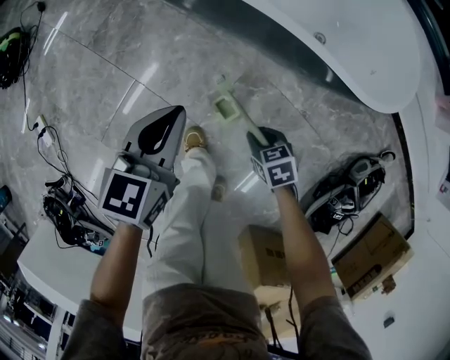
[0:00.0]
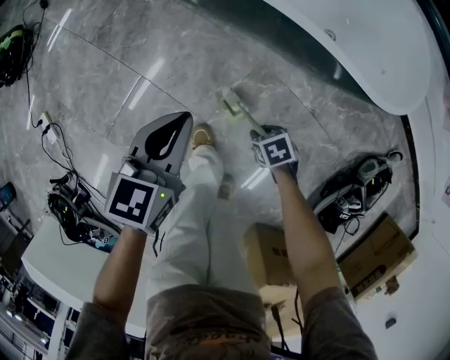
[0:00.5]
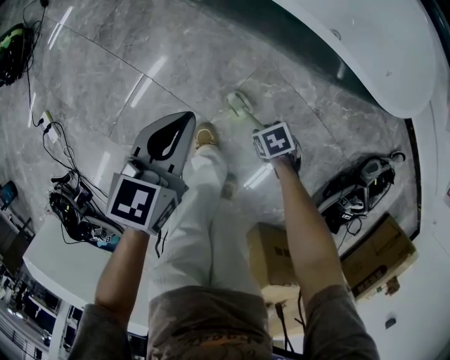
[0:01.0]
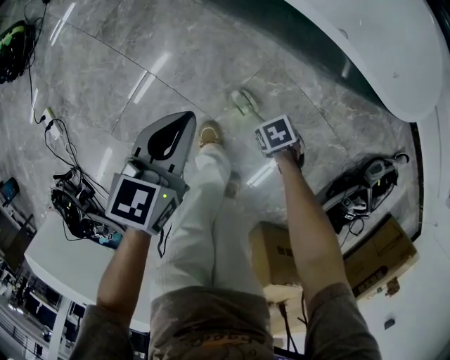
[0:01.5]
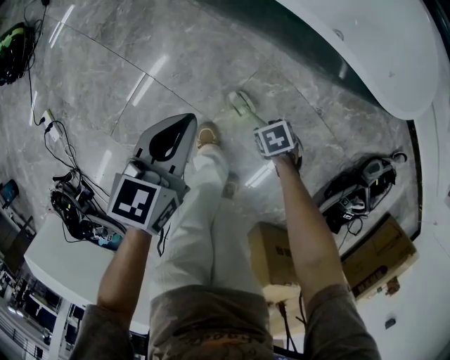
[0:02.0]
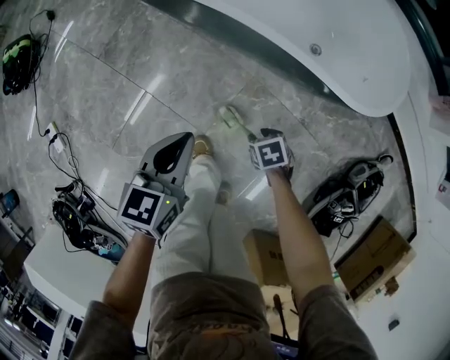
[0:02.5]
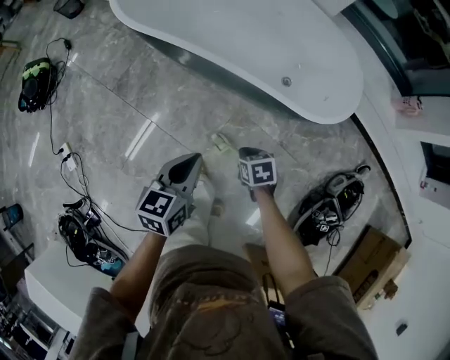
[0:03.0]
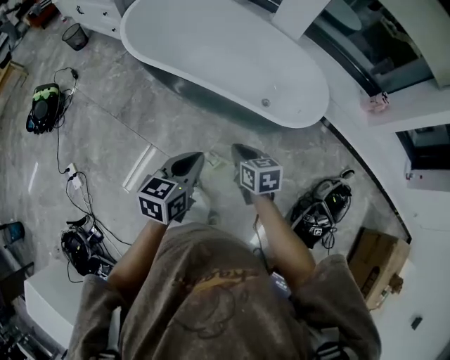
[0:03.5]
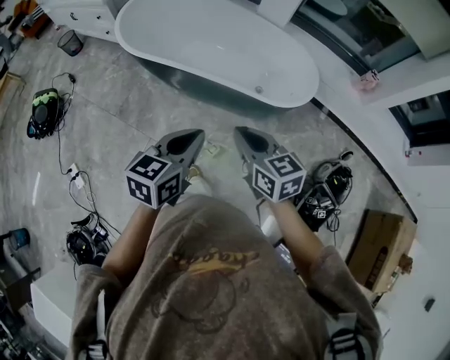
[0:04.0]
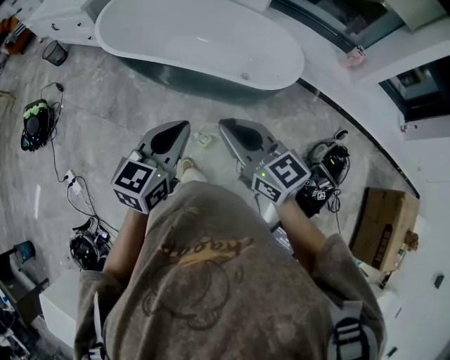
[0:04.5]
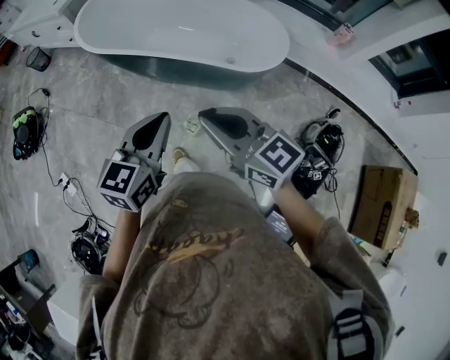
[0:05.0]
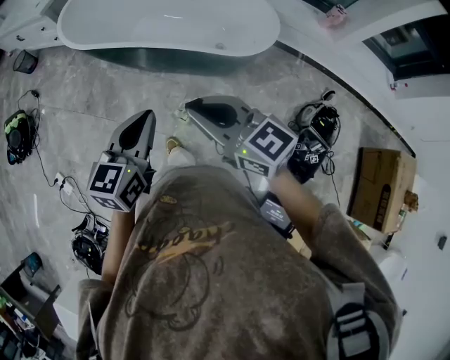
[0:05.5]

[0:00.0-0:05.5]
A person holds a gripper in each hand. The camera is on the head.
0:00.0 to 0:02.0: The right gripper heads downward, covering approximately 10 cm, rotates roughly 20 degrees, and opens its fingers.
0:02.0 to 0:03.5: The right gripper shifts roughly 50 cm upward, angles its fingers upward, by about 40 degrees, and closes. The left gripper heads upward, covering about 30 cm.
0:03.5 to 0:05.5: The right gripper shifts approximately 25 cm upward and backward, and tilts its fingers roughly 30 degrees upward, while the left gripper shifts roughly 10 cm upward and backward.

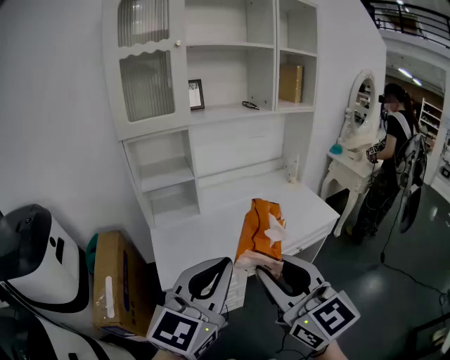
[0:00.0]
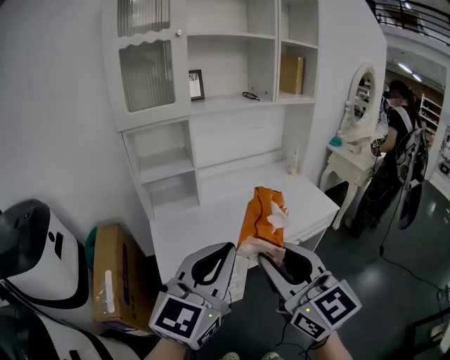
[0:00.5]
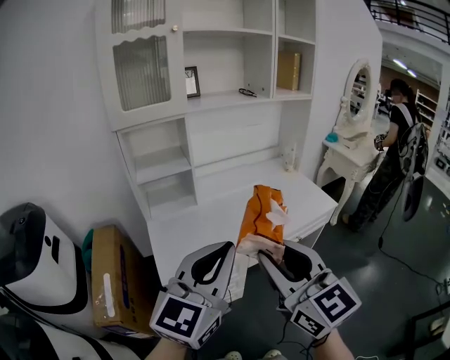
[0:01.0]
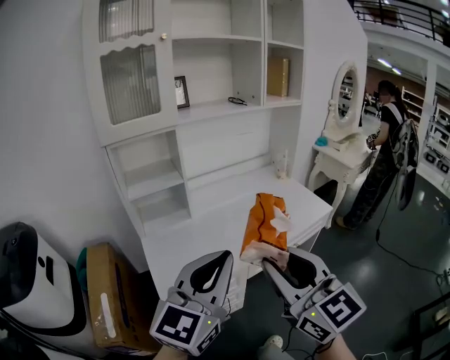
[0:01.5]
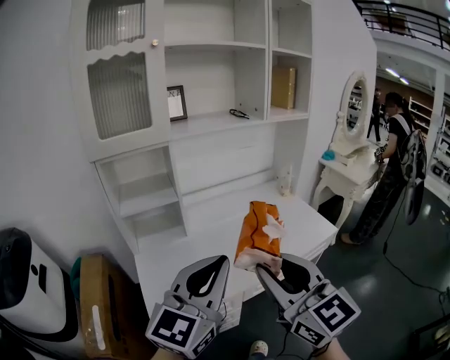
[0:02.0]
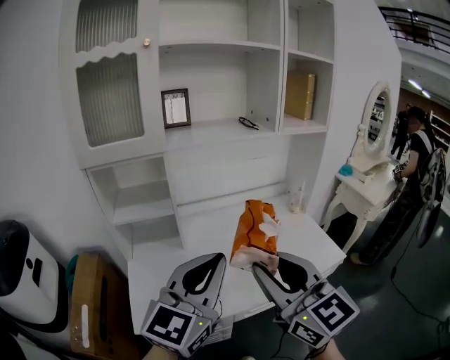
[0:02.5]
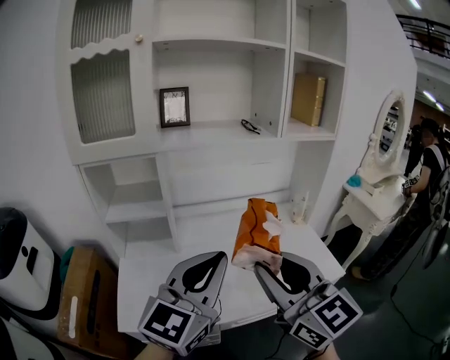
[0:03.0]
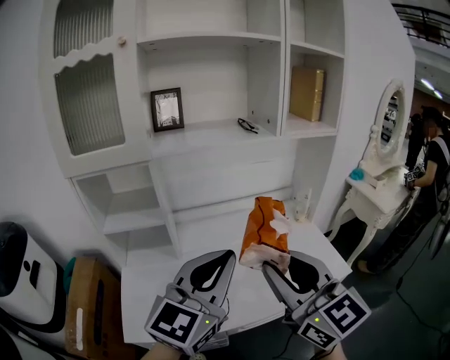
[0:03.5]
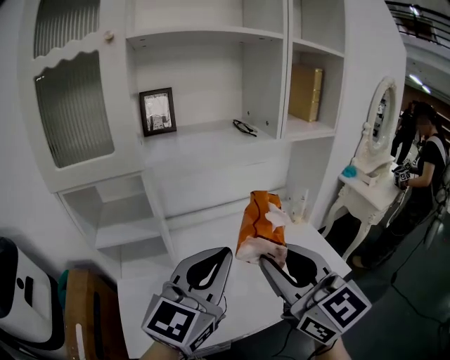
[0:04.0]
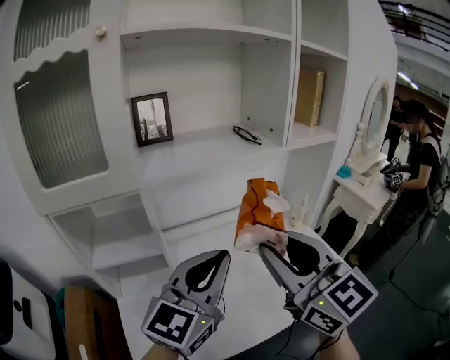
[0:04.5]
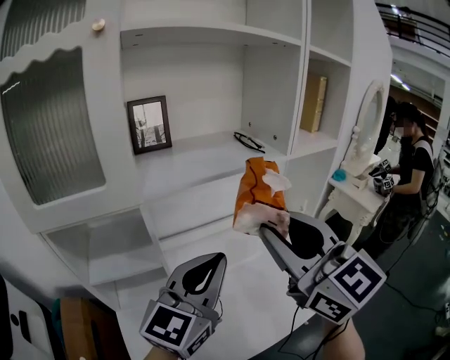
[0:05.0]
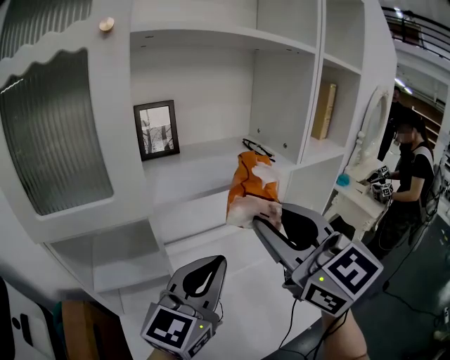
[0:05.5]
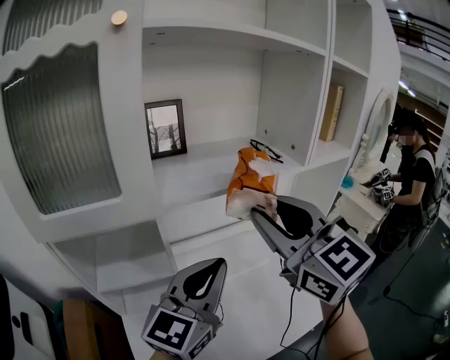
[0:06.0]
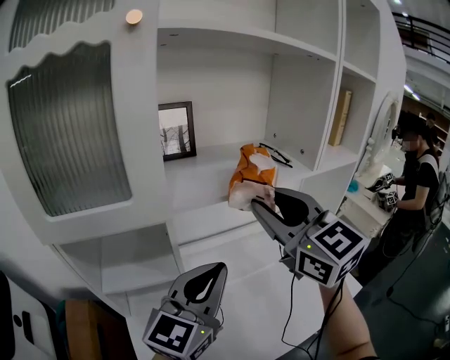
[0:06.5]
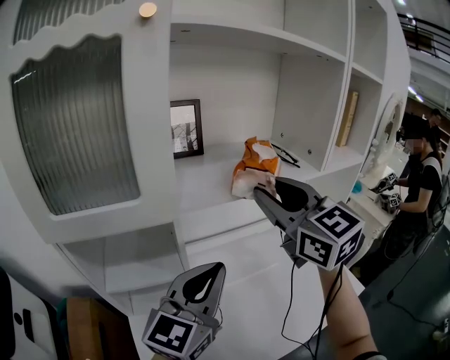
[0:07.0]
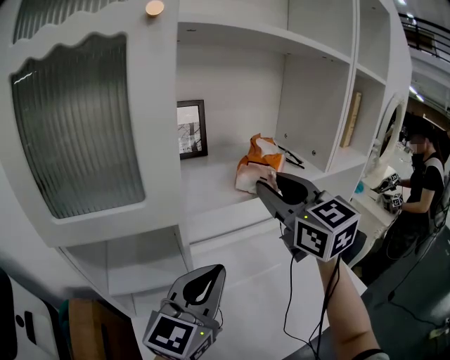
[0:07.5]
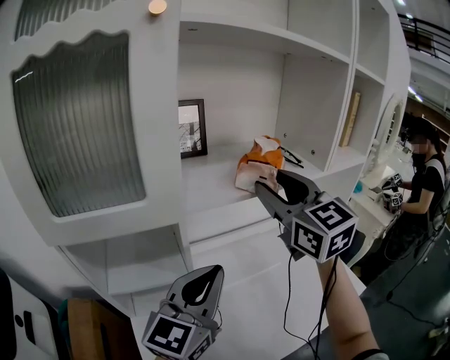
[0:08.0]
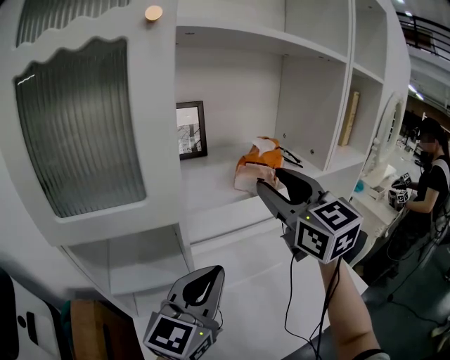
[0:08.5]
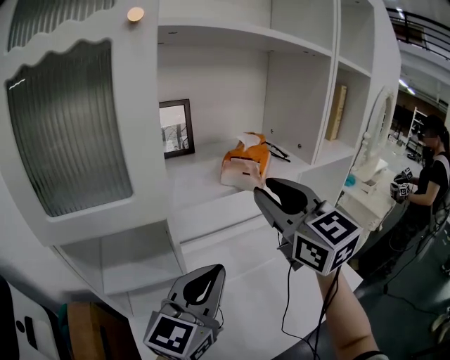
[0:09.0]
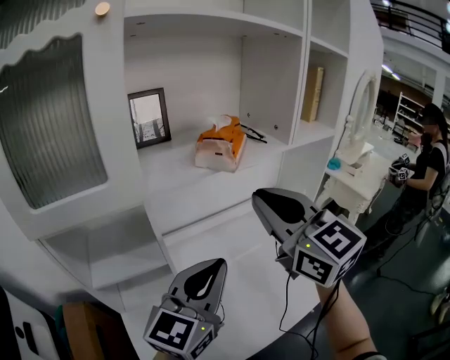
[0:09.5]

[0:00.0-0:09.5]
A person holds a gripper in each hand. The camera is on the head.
0:00.0 to 0:02.0: Both grippers travel together forward, about 10 cm.
0:02.0 to 0:04.0: Both grippers move forward, some 20 cm.
0:04.0 to 0:05.5: The left gripper moves forward and to the left, approximately 15 cm. The right gripper moves forward, upward and to the left, roughly 20 cm.
0:05.5 to 0:07.5: The right gripper shifts roughly 15 cm forward. Meanwhile the left gripper is displaced to the left by approximately 5 cm.
0:07.5 to 0:09.5: The left gripper is displaced to the right by approximately 5 cm. The right gripper moves backward, roughly 10 cm, and closes up.

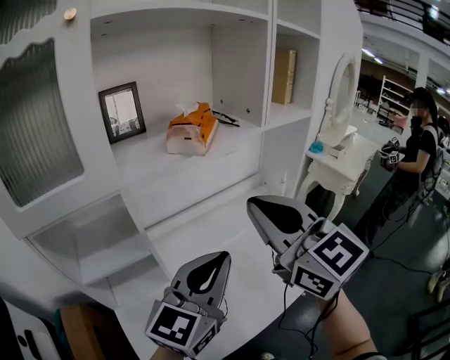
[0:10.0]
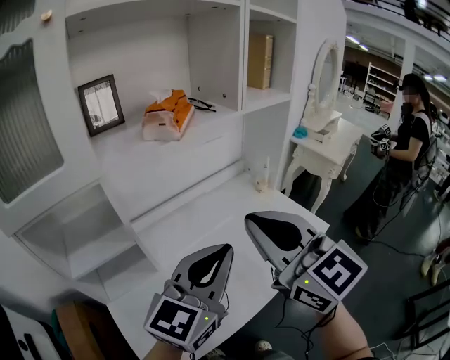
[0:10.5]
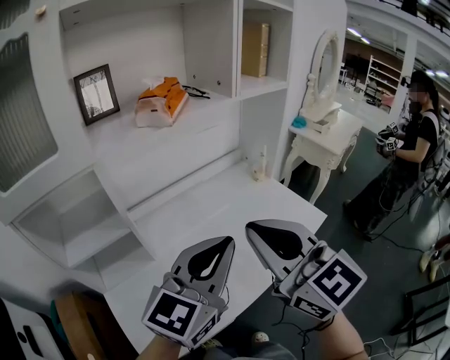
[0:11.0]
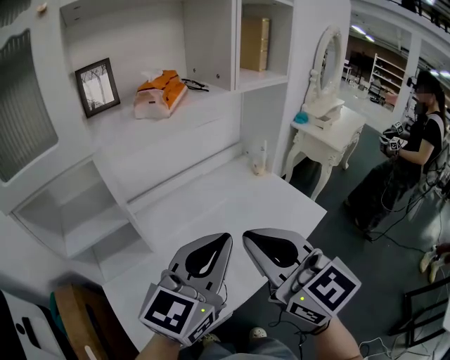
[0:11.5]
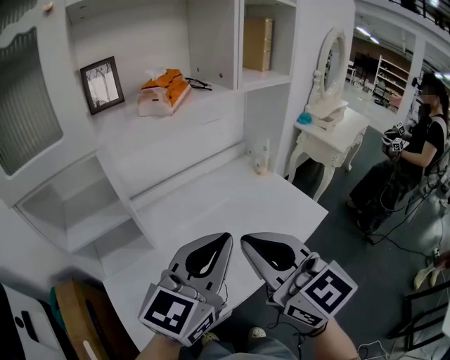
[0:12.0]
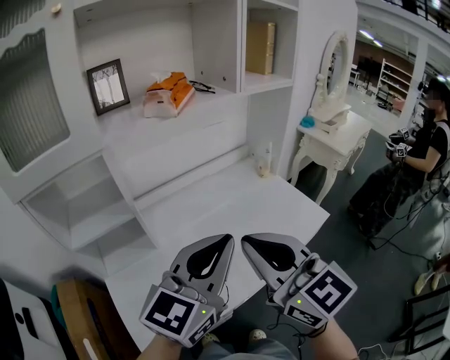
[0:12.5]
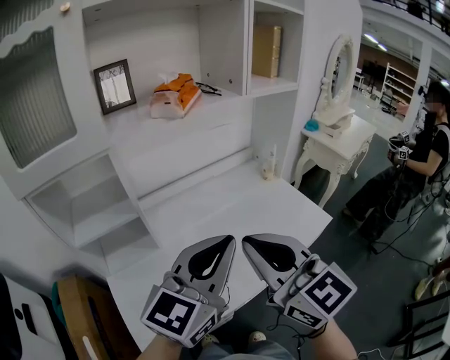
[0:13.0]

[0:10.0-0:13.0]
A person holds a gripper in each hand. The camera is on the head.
0:10.0 to 0:11.5: The right gripper shifts about 15 cm backward, downward and to the right; the left gripper goes about 5 cm to the right.
0:11.5 to 0:13.0: The grippers stay close to where they were, moving slightly.

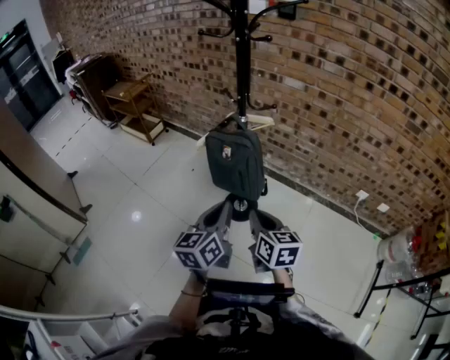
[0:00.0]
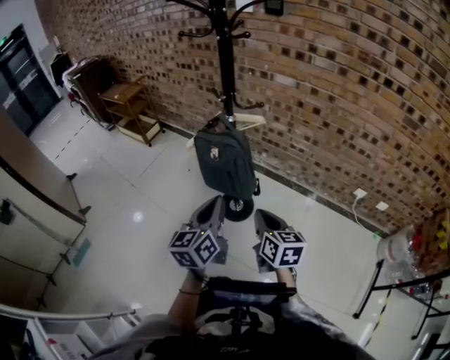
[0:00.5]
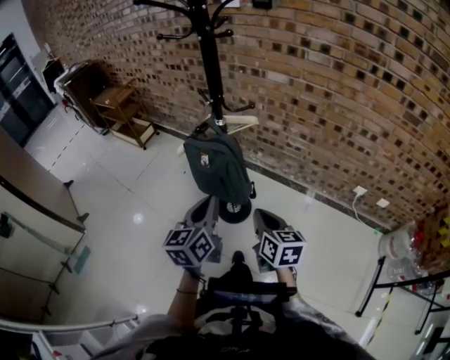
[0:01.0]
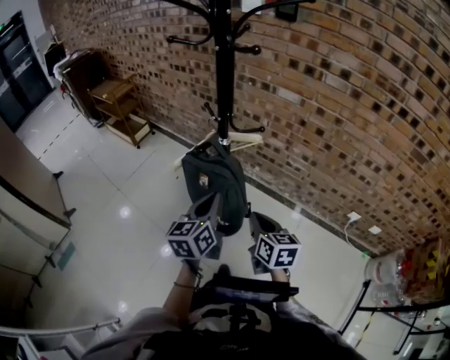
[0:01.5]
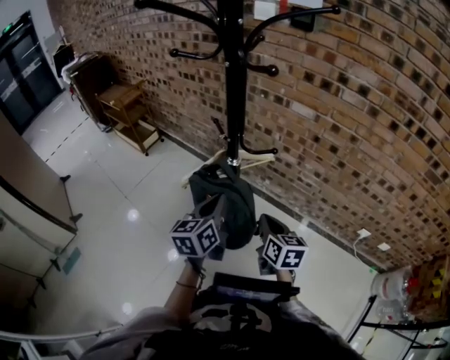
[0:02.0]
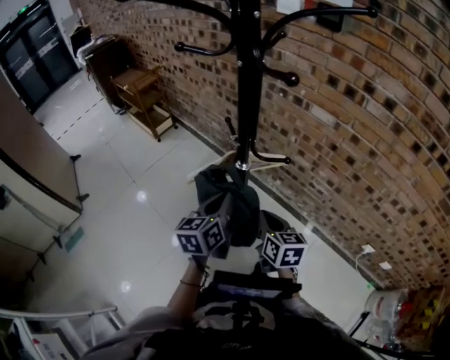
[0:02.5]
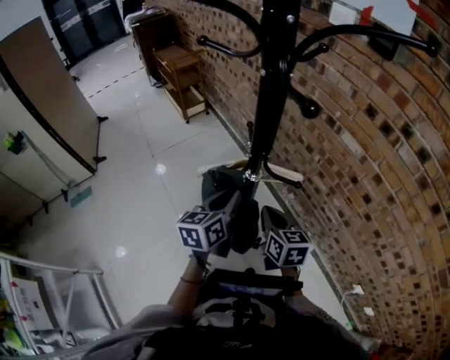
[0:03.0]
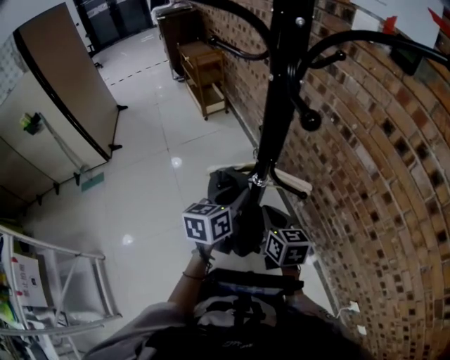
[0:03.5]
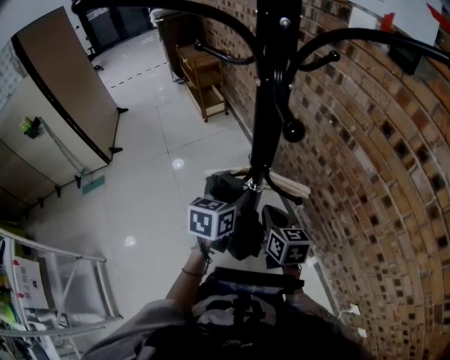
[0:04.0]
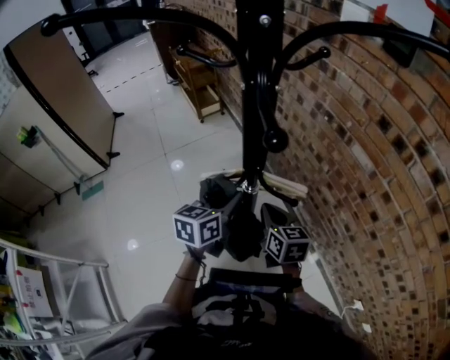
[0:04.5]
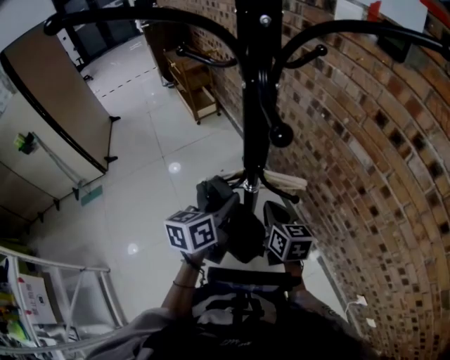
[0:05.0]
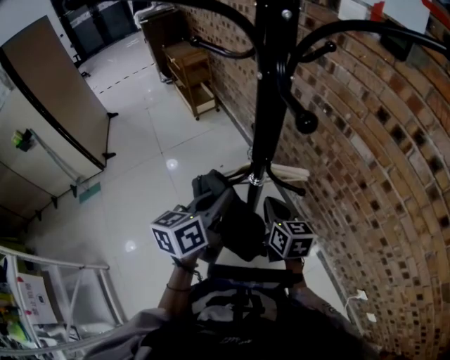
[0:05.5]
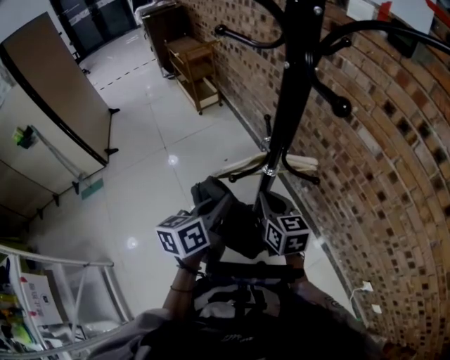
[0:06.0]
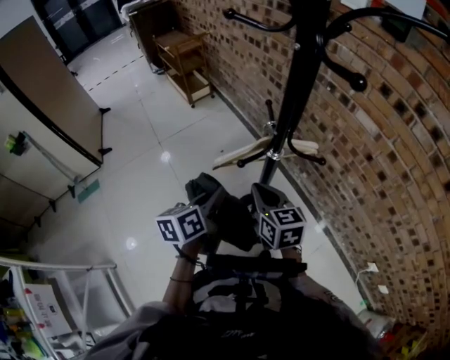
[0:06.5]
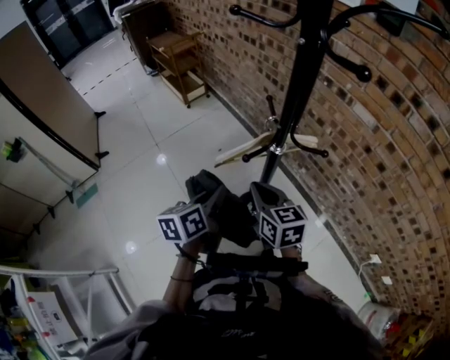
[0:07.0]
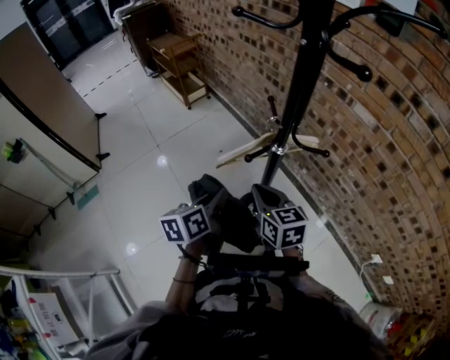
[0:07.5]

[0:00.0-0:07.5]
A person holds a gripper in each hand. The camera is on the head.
0:00.0 to 0:02.0: Both grippers travel together forward, about 25 cm.
0:02.0 to 0:04.0: The left gripper ends up roughly 10 cm from where it was, and turns by approximately 20 degrees. The right gripper shifts by about 15 cm, and swivels some 30 degrees.
0:04.0 to 0:05.5: The left gripper moves upward, roughly 5 cm.
0:05.5 to 0:07.5: The left gripper goes some 15 cm to the left, downward and backward. The right gripper moves to the left and backward, about 15 cm.
